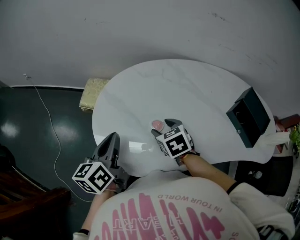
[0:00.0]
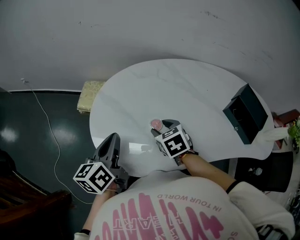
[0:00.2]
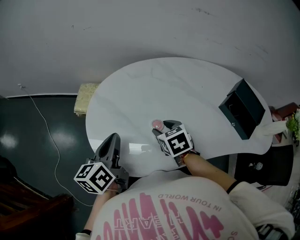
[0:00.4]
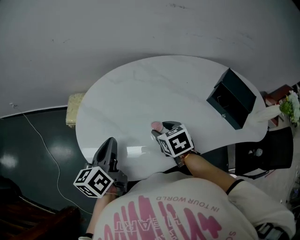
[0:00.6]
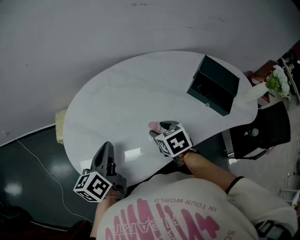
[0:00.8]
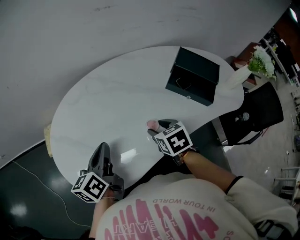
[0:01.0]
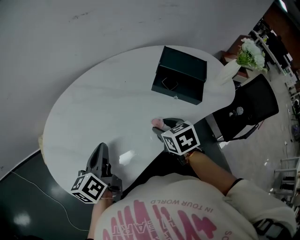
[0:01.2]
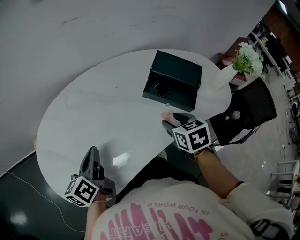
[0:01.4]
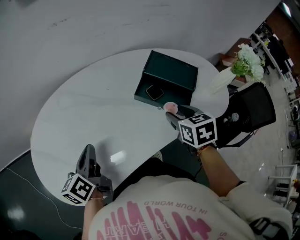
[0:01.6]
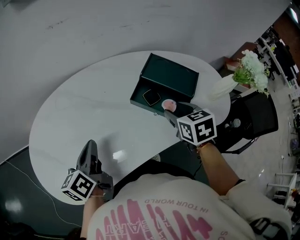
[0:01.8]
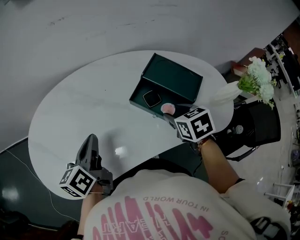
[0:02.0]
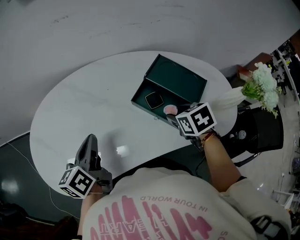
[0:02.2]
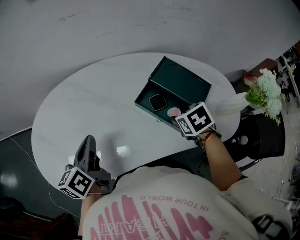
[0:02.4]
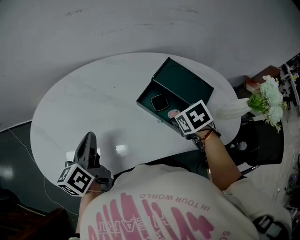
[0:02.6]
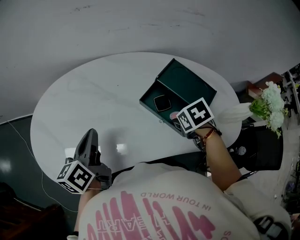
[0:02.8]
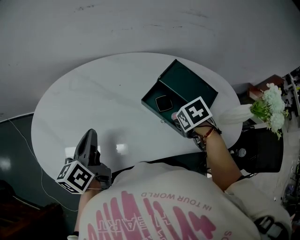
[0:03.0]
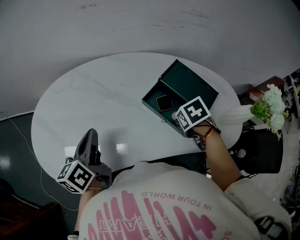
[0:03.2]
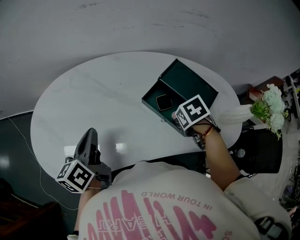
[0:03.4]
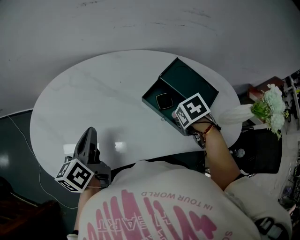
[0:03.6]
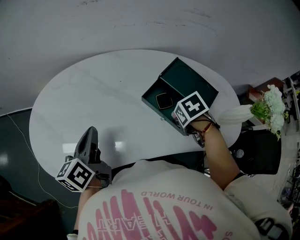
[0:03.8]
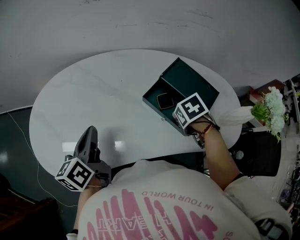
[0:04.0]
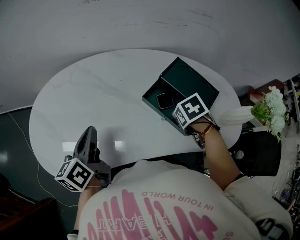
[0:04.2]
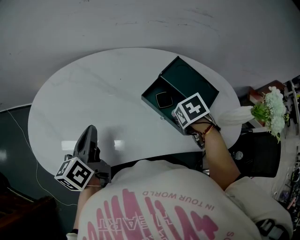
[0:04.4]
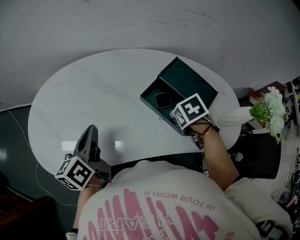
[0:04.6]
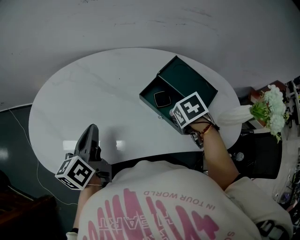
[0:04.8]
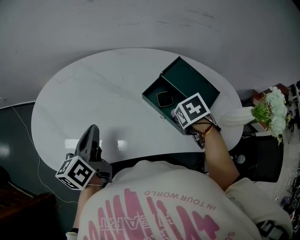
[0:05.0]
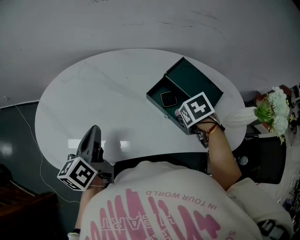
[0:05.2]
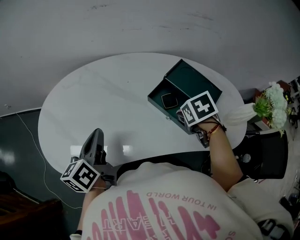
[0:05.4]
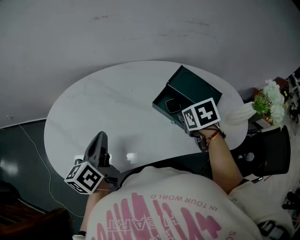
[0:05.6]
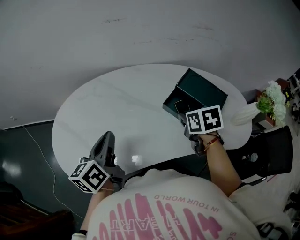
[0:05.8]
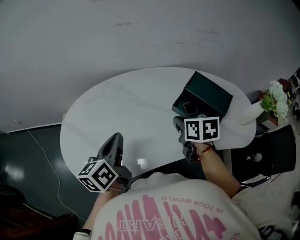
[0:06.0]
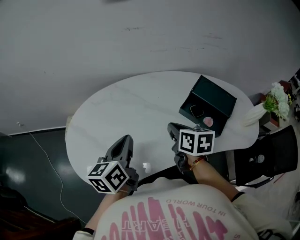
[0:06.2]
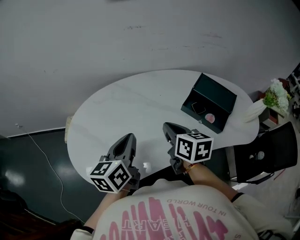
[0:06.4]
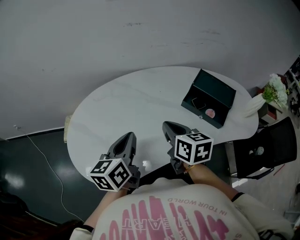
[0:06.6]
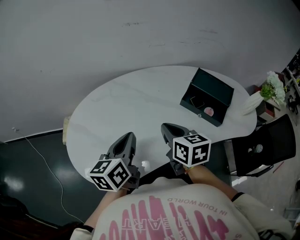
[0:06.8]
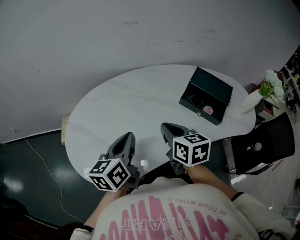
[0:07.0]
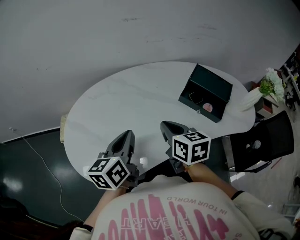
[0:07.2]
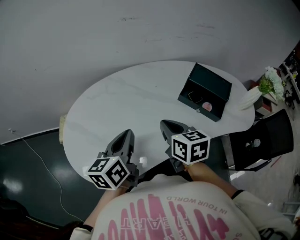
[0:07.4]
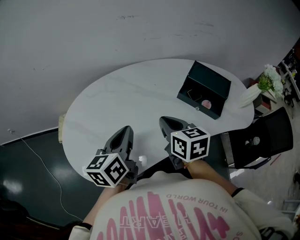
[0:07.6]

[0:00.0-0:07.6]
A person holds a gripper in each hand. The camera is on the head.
0:00.0 to 0:01.6: The right gripper shifts by roughly 40 cm, and turns by approximately 40 degrees, while the left gripper changes place by roughly 25 cm, and turns by roughly 20 degrees.
0:01.6 to 0:03.0: The left gripper changes place by some 5 cm, while the right gripper goes about 10 cm downward, and rotates approximately 40 degrees.
0:03.0 to 0:04.6: The grippers stay close to where they were, moving slightly.
0:04.6 to 0:06.0: The left gripper moves about 5 cm. Meanwhile the right gripper changes place by approximately 20 cm, points its fingers some 40 degrees further upward, and closes up.
0:06.0 to 0:07.6: The right gripper travels to the left and backward by some 15 cm.

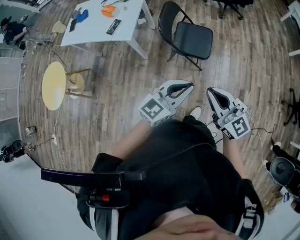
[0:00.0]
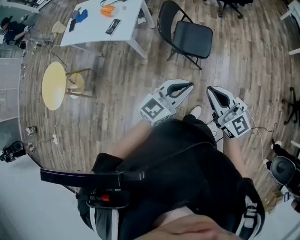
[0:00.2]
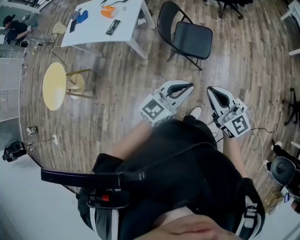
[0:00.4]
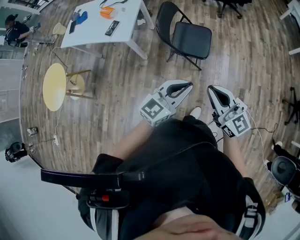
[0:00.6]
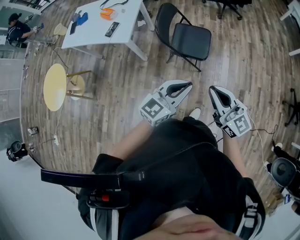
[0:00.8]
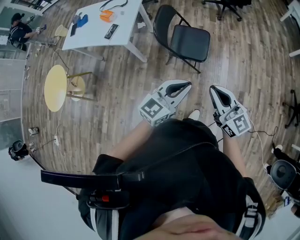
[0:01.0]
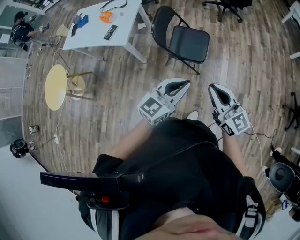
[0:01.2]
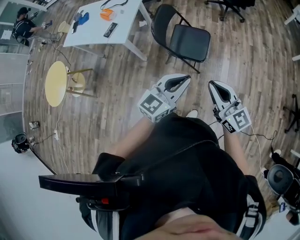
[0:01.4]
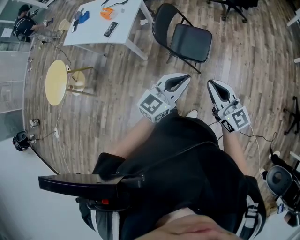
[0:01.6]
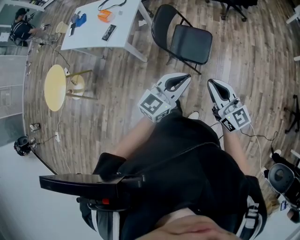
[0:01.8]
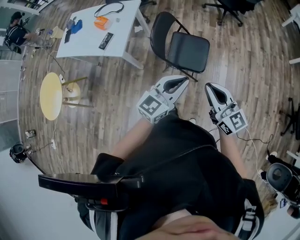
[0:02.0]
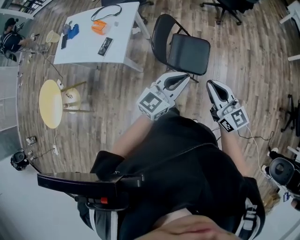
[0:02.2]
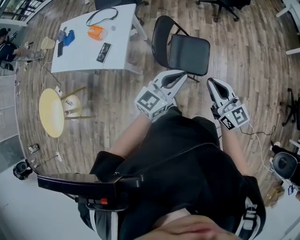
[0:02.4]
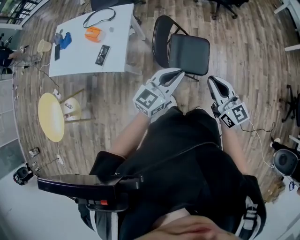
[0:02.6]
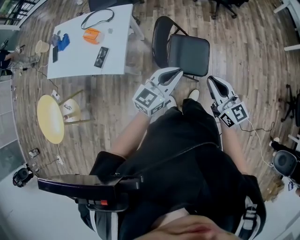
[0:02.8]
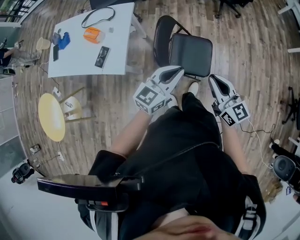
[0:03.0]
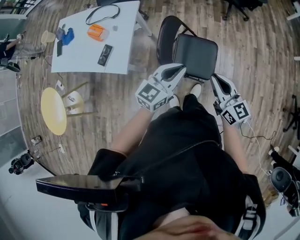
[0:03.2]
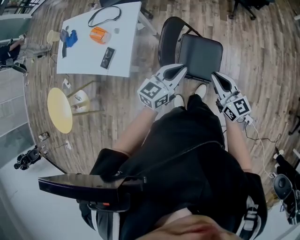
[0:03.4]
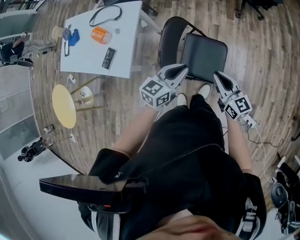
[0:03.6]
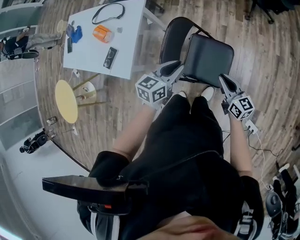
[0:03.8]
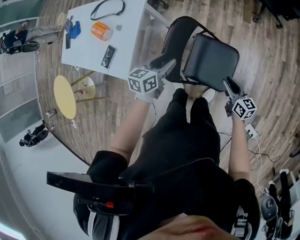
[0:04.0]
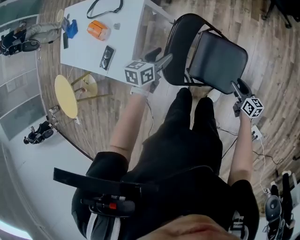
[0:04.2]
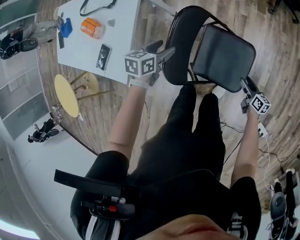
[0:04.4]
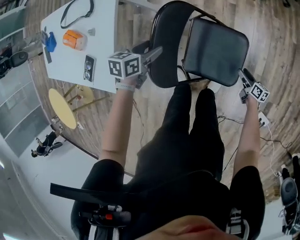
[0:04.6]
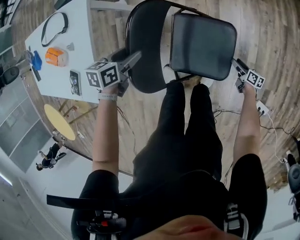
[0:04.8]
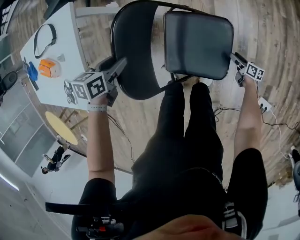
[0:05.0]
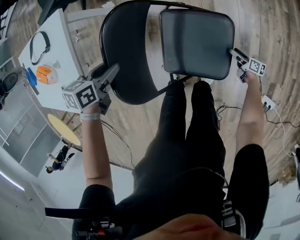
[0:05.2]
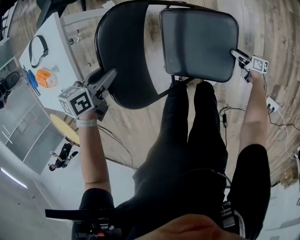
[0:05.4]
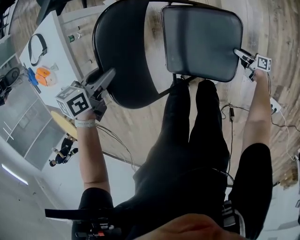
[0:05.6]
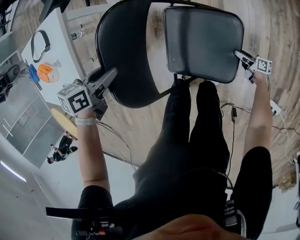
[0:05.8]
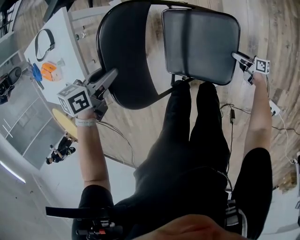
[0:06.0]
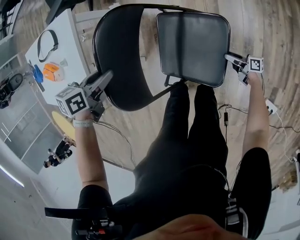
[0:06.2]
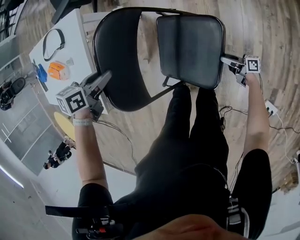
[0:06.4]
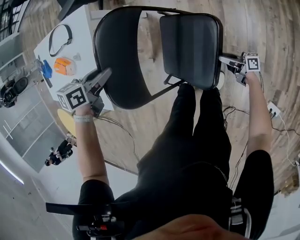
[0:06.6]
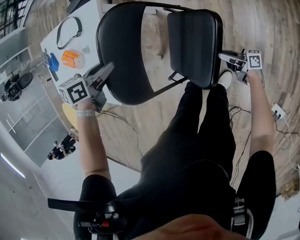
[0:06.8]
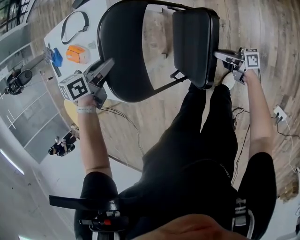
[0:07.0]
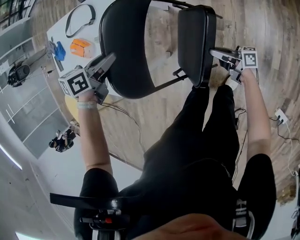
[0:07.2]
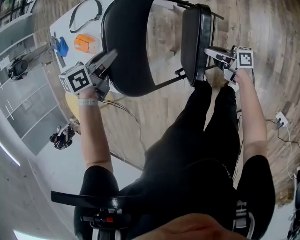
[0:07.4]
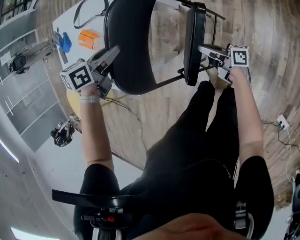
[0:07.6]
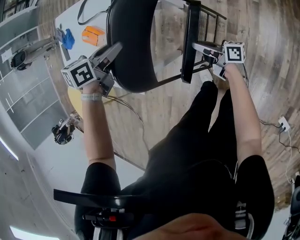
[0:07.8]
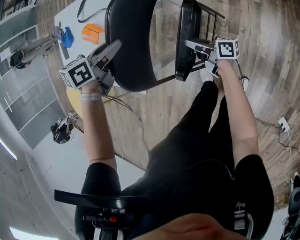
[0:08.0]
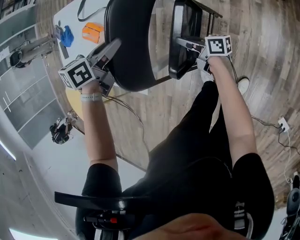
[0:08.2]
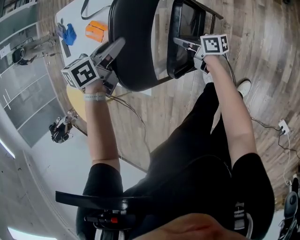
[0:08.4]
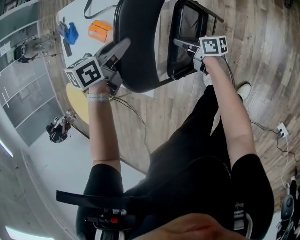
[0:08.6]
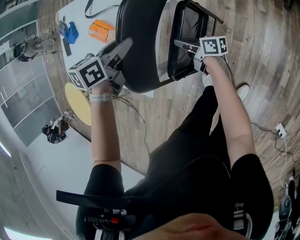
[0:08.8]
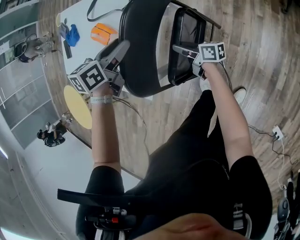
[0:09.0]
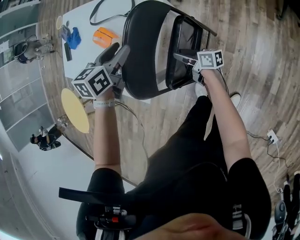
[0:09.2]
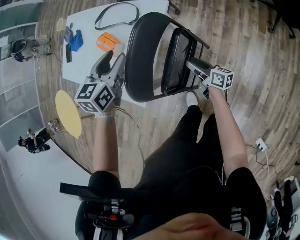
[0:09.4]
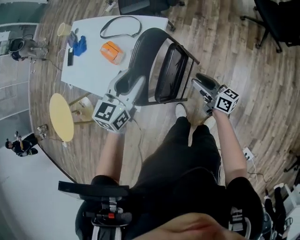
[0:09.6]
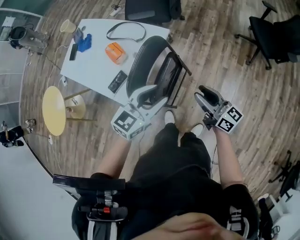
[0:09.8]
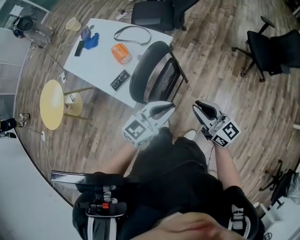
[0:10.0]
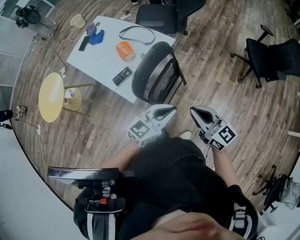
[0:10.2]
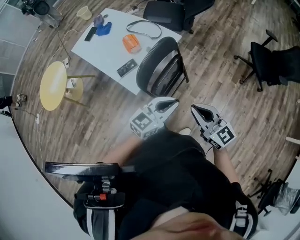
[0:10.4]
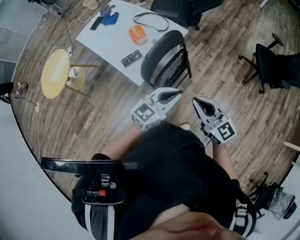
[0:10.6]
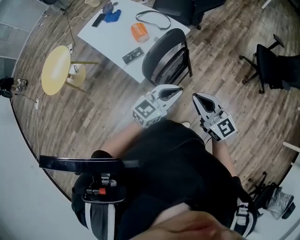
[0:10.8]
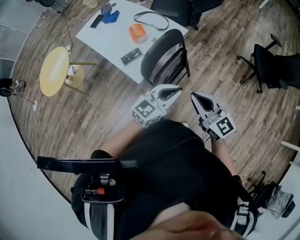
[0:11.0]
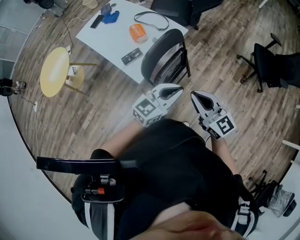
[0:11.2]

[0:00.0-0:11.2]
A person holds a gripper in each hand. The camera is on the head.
0:00.0 to 0:01.6: The two grippers go some 10 cm to the right and forward.
0:01.6 to 0:03.2: The grippers both shift forward and to the left by about 30 cm.
0:03.2 to 0:04.8: The left gripper goes some 40 cm downward and forward, angles its fingers downward, by about 40 degrees, and opens. The right gripper shifts approximately 60 cm downward, rotates around the line of its fingers by approximately 50 degrees, clockwise from behind, and opens up.
0:04.8 to 0:06.4: The left gripper closes, while the right gripper reaches roughly 10 cm downward, then returns, and tips its fingers upward by about 30 degrees.
0:06.4 to 0:08.0: The left gripper moves about 20 cm. The right gripper ends up roughly 50 cm from where it was, and closes up.
0:08.0 to 0:09.6: The left gripper travels upward and backward by some 15 cm, and rotates some 40 degrees, while the right gripper shifts approximately 20 cm upward and to the right, changes its angle by some 40 degrees, and opens.
0:09.6 to 0:11.2: The right gripper moves upward and backward, some 35 cm, rolls counterclockwise, seen from behind, by some 40 degrees, and closes, while the left gripper is displaced backward, to the right and upward by approximately 25 cm, changes its angle by roughly 20 degrees, and closes up.

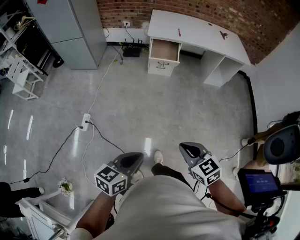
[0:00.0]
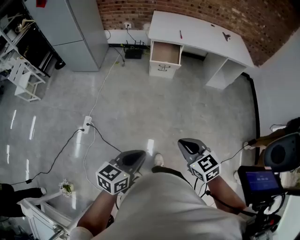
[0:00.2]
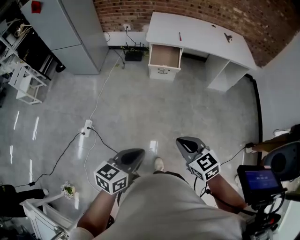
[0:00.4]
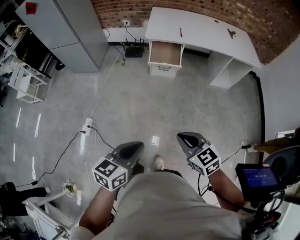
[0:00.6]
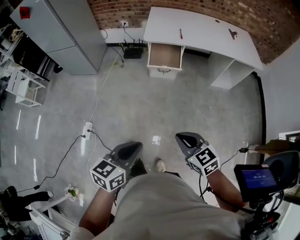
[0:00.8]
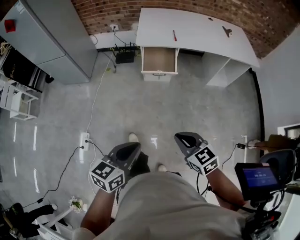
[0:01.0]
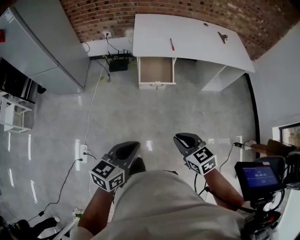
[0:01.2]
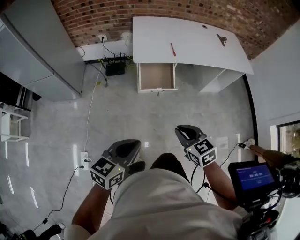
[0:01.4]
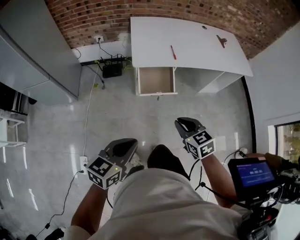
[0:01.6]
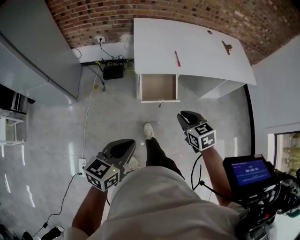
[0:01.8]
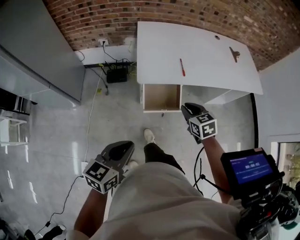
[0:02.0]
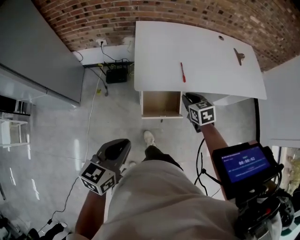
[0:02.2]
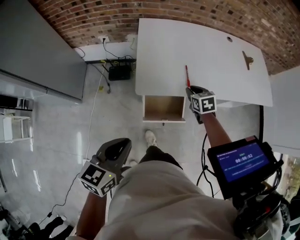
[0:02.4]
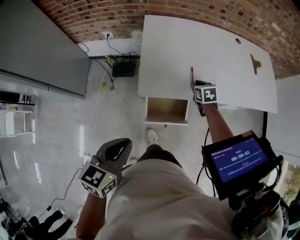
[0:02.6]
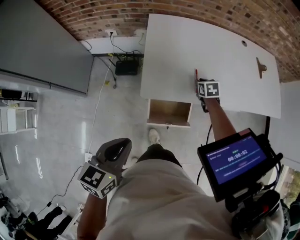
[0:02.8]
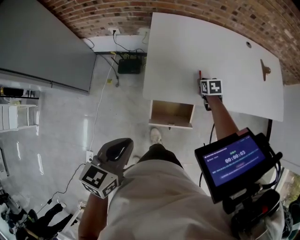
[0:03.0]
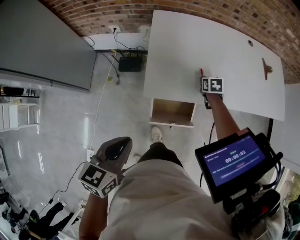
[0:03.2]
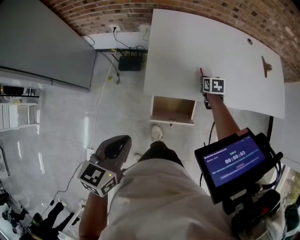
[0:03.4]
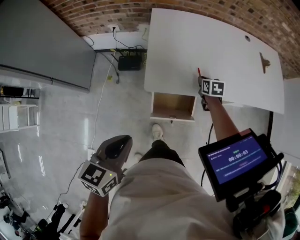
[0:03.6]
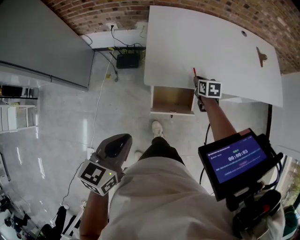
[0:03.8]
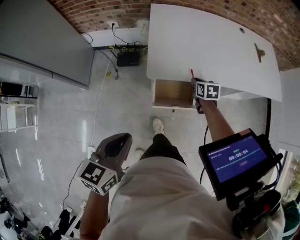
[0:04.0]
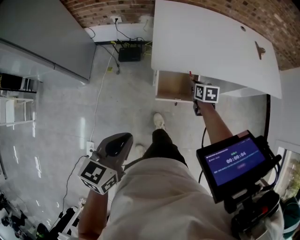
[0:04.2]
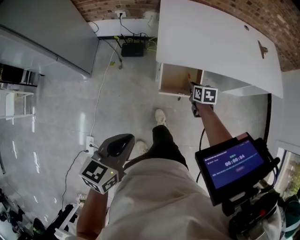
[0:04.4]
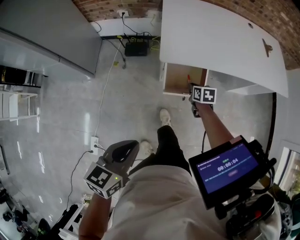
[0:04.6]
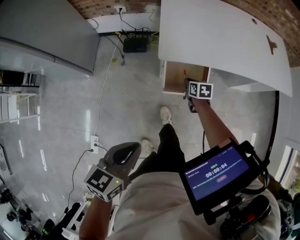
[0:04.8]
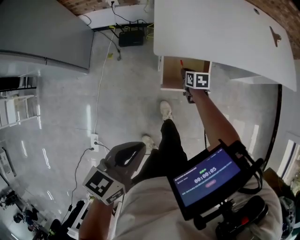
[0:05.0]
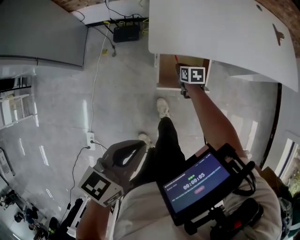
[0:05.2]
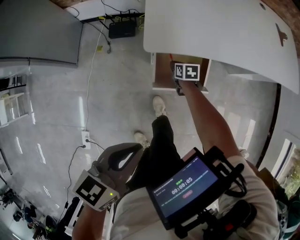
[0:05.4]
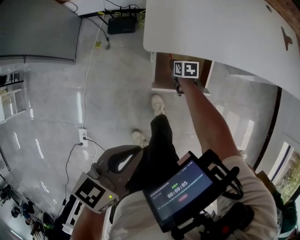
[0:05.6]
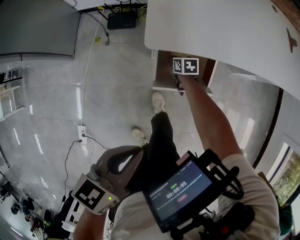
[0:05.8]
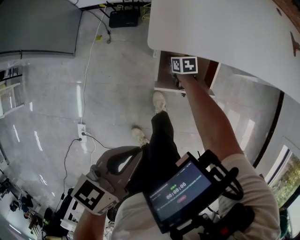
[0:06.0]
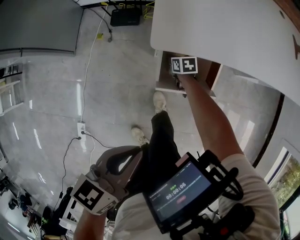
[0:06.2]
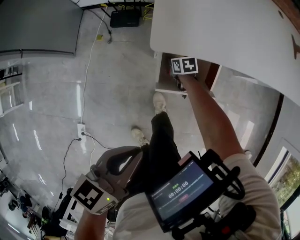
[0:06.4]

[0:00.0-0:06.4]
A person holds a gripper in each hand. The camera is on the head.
0:00.0 to 0:01.6: The pair of grippers is taken forward, roughly 50 cm.
0:01.6 to 0:03.2: The left gripper goes approximately 30 cm forward, and turns by roughly 20 degrees. The right gripper travels forward by approximately 60 cm, and swivels approximately 30 degrees.
0:03.2 to 0:04.8: The left gripper is displaced backward by about 20 cm, while the right gripper shifts about 25 cm backward and to the left.
0:04.8 to 0:06.4: The left gripper shifts roughly 15 cm forward and downward. The right gripper heads downward and forward, covering approximately 20 cm.
